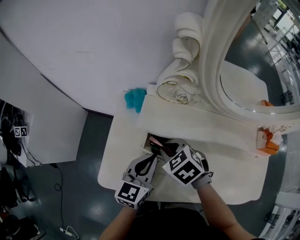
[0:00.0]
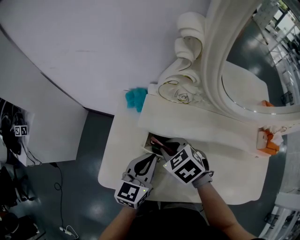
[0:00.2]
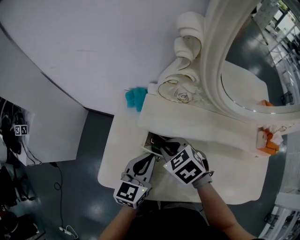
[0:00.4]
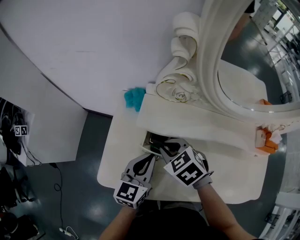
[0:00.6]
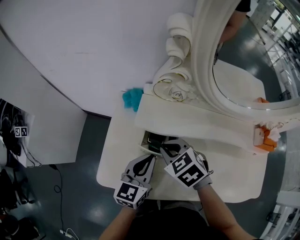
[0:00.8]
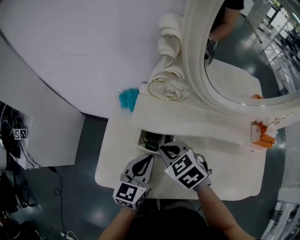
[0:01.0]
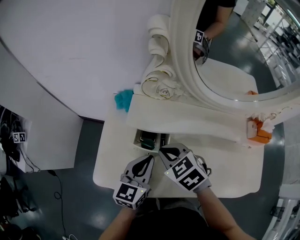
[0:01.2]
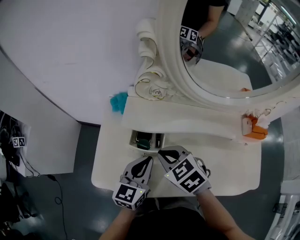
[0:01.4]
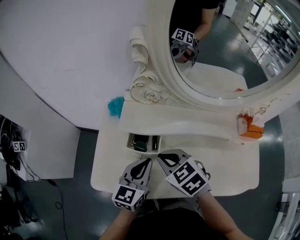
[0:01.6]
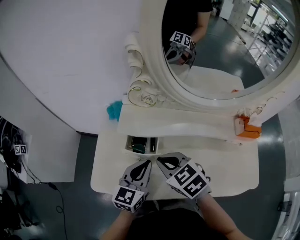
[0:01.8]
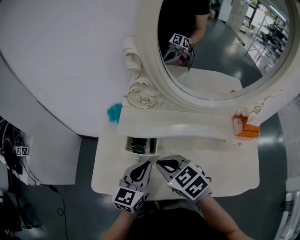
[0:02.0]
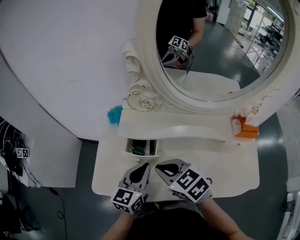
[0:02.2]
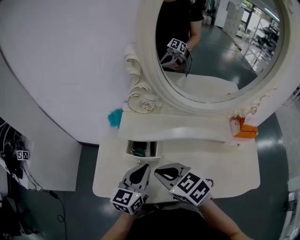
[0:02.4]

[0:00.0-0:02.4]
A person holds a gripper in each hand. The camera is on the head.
0:00.0 to 0:01.2: The right gripper shifts by roughly 5 cm.
0:01.2 to 0:02.4: The right gripper travels backward by some 10 cm.

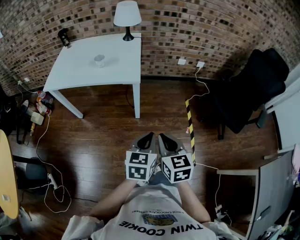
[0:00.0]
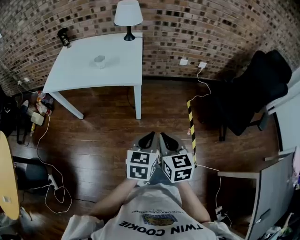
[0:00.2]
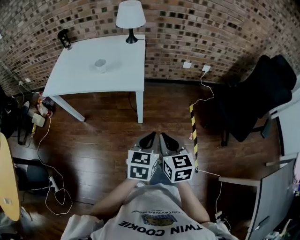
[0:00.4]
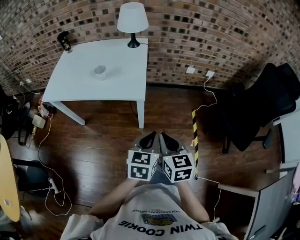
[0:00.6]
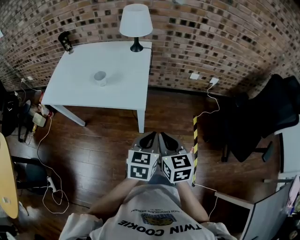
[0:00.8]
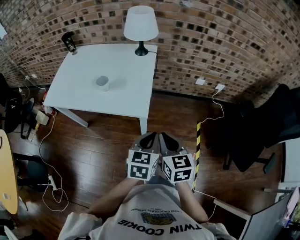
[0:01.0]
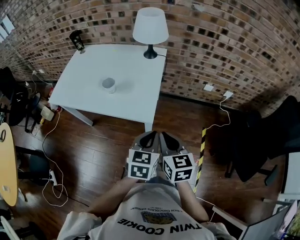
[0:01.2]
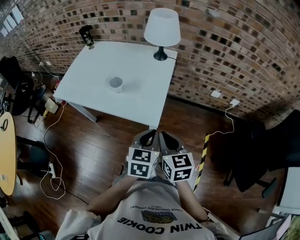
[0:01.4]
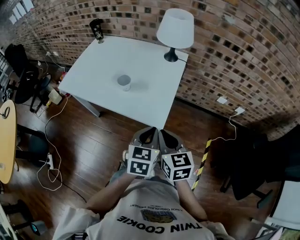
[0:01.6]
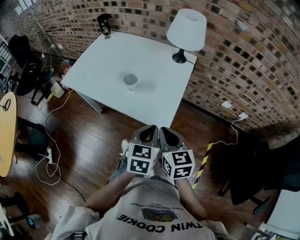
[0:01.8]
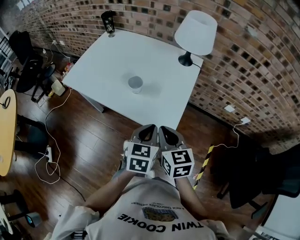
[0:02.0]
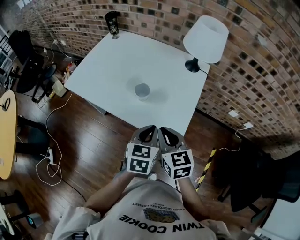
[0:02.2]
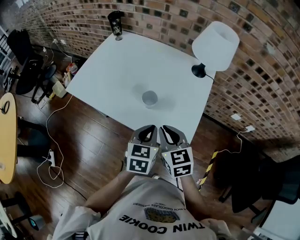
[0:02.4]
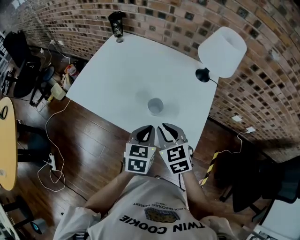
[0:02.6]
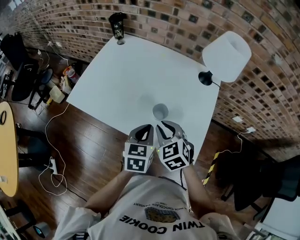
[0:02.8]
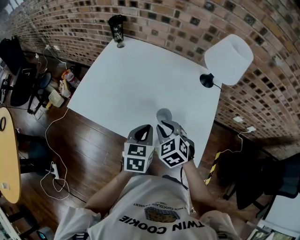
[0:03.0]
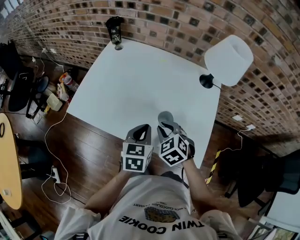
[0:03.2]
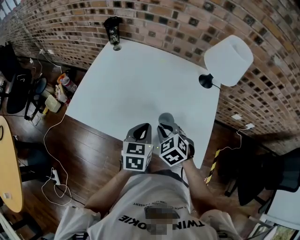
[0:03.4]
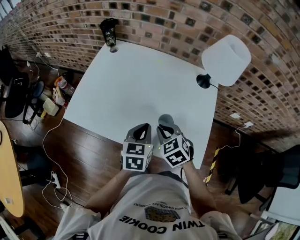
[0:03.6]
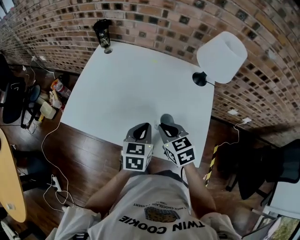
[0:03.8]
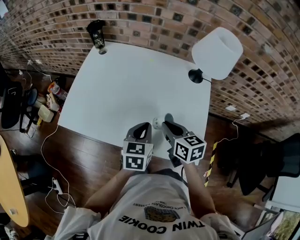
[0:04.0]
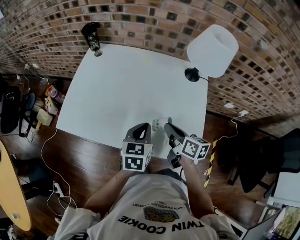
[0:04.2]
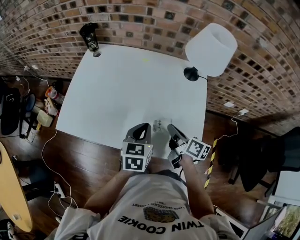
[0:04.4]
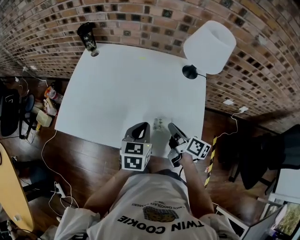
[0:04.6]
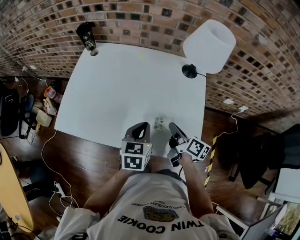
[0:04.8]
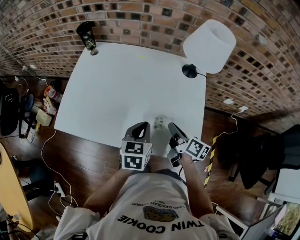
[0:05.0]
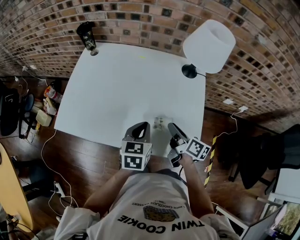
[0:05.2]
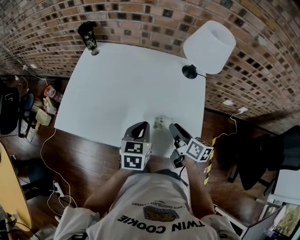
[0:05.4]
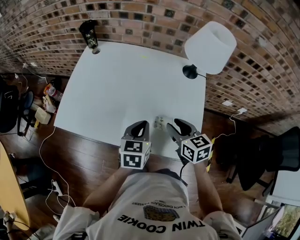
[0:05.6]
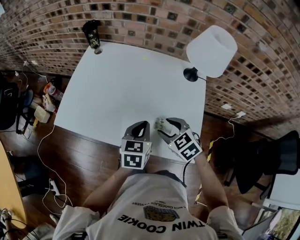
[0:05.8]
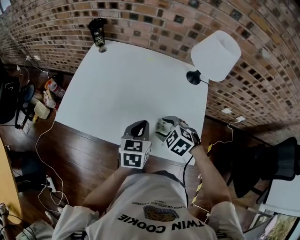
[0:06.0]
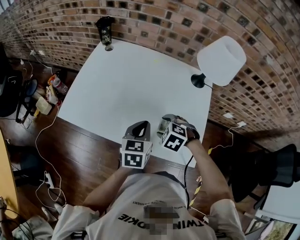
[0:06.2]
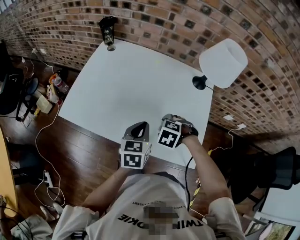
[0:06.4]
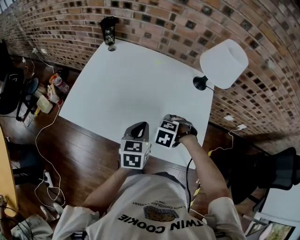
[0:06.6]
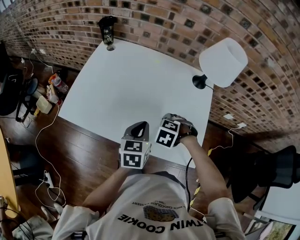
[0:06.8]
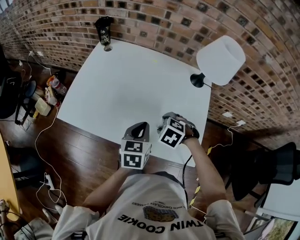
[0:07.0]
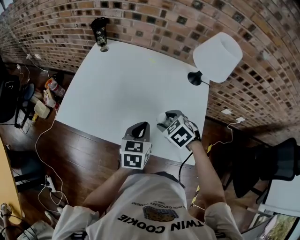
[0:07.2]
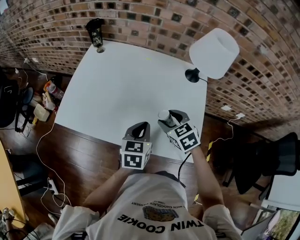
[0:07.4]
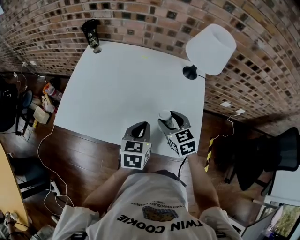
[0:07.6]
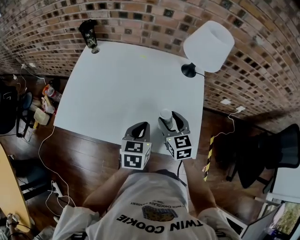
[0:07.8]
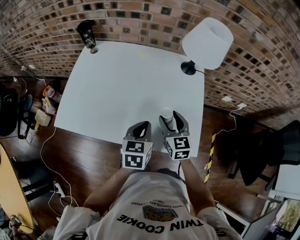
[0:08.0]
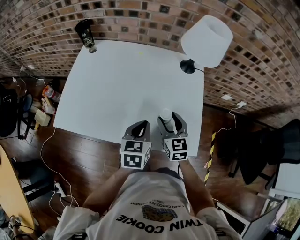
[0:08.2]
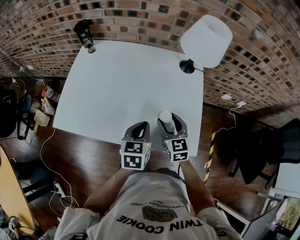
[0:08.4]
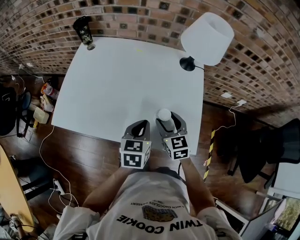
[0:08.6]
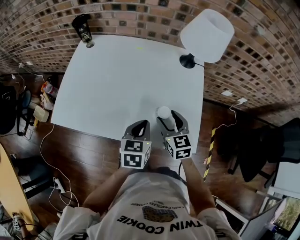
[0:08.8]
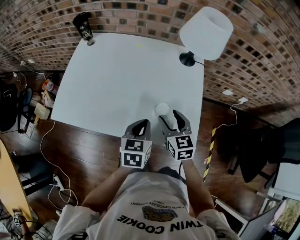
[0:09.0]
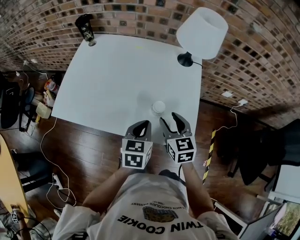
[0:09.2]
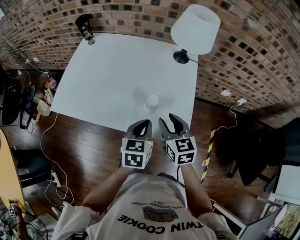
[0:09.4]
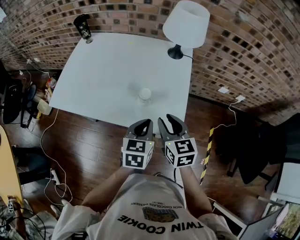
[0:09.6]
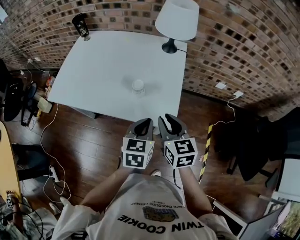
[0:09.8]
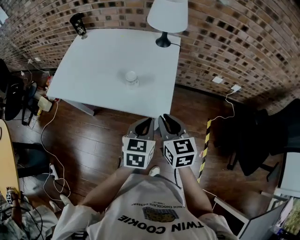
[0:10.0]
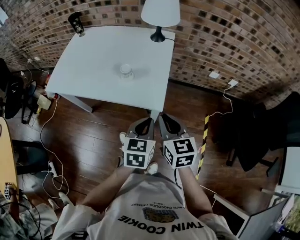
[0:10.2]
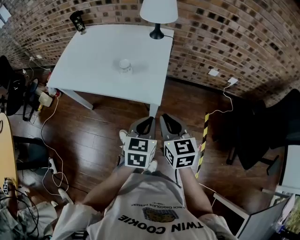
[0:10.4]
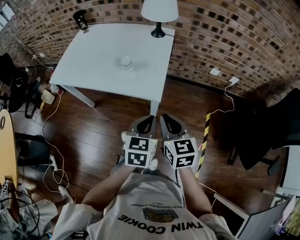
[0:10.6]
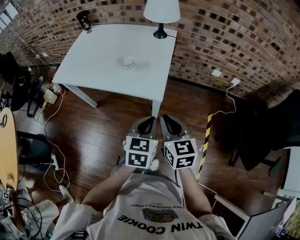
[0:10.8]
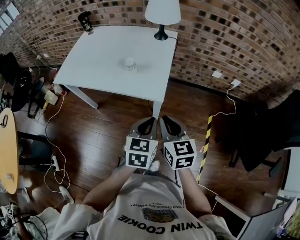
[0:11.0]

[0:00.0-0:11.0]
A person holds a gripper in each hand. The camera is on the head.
0:00.0 to 0:01.6: The two grippers go some 35 cm forward. The right gripper turns by some 20 degrees; the left gripper rotates approximately 20 degrees.
0:01.6 to 0:03.2: The grippers both shift forward and to the left by roughly 35 cm. The right gripper rotates approximately 40 degrees.
0:03.2 to 0:04.8: The right gripper goes approximately 15 cm to the right, and rolls clockwise, seen from behind, by approximately 90 degrees; the left gripper travels to the right by approximately 5 cm.
0:04.8 to 0:06.2: The right gripper shifts some 10 cm to the left, rolls counterclockwise, seen from behind, by roughly 100 degrees, and opens up.
0:06.2 to 0:07.8: The right gripper moves some 10 cm, and tilts its fingers some 40 degrees upward.
0:07.8 to 0:09.4: The right gripper is displaced backward and to the right by approximately 10 cm. Meanwhile the left gripper shifts approximately 10 cm to the right and backward.
0:09.4 to 0:11.0: Both grippers travel together backward and to the right, some 30 cm. The right gripper closes its fingers.

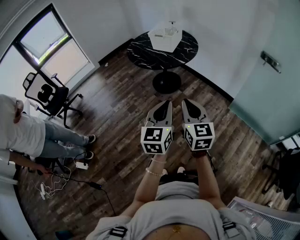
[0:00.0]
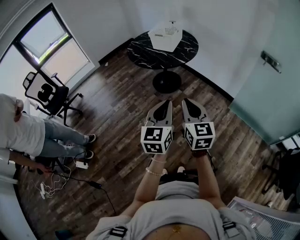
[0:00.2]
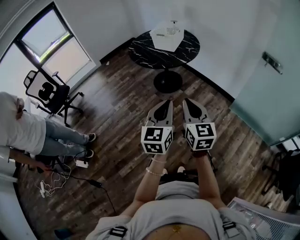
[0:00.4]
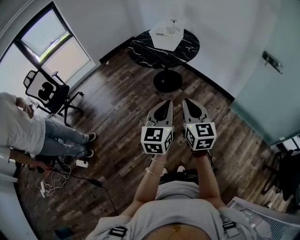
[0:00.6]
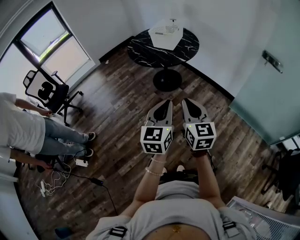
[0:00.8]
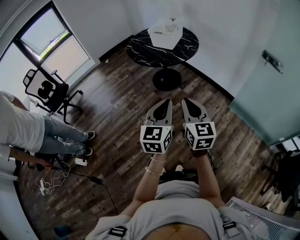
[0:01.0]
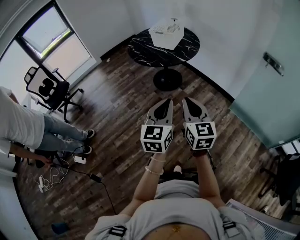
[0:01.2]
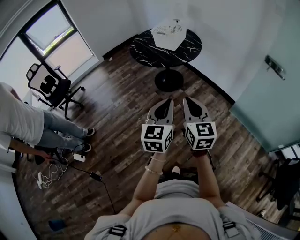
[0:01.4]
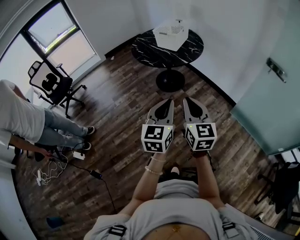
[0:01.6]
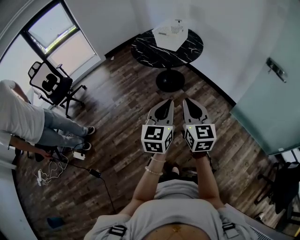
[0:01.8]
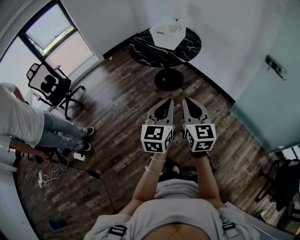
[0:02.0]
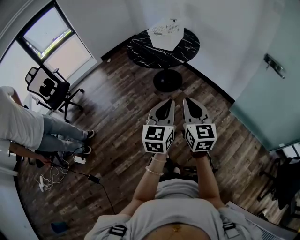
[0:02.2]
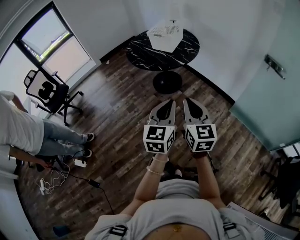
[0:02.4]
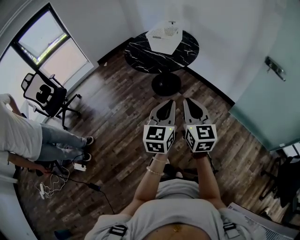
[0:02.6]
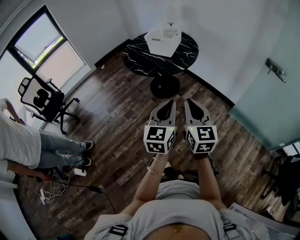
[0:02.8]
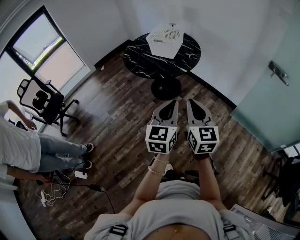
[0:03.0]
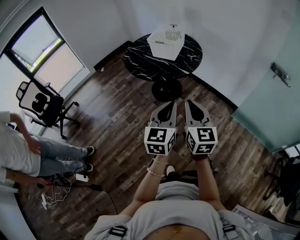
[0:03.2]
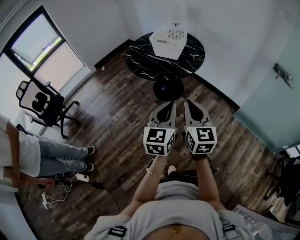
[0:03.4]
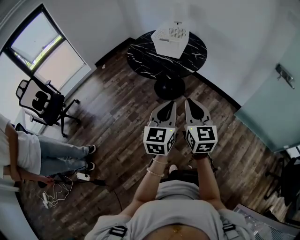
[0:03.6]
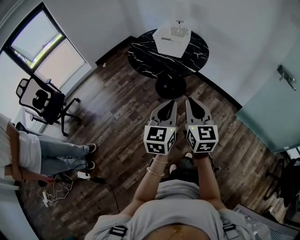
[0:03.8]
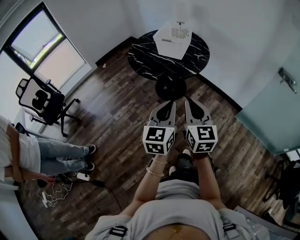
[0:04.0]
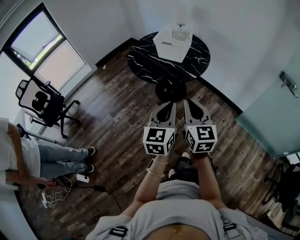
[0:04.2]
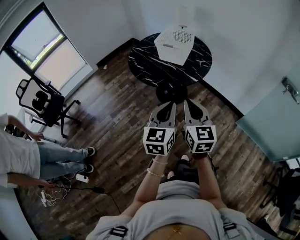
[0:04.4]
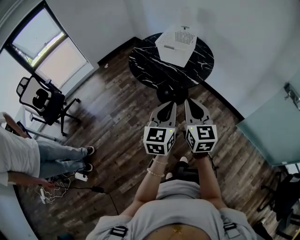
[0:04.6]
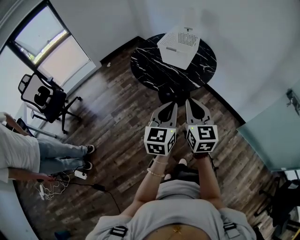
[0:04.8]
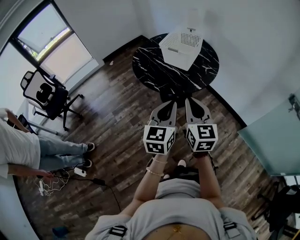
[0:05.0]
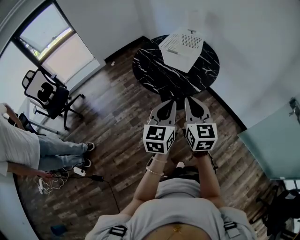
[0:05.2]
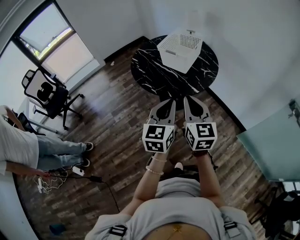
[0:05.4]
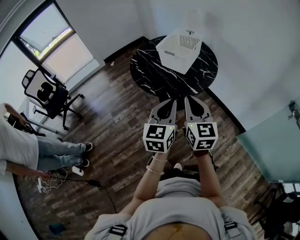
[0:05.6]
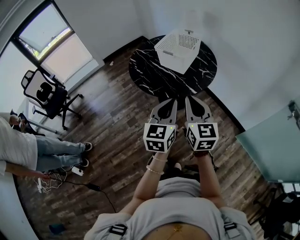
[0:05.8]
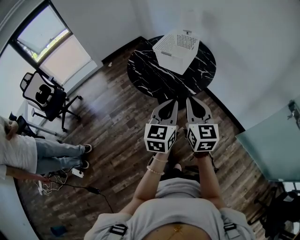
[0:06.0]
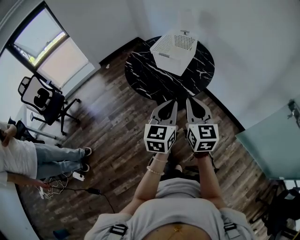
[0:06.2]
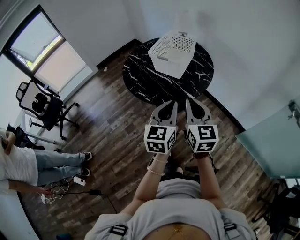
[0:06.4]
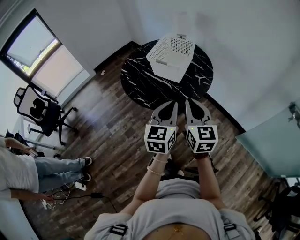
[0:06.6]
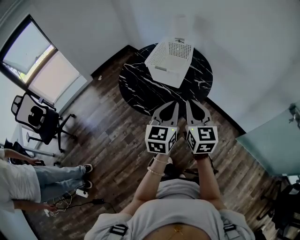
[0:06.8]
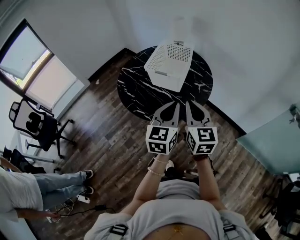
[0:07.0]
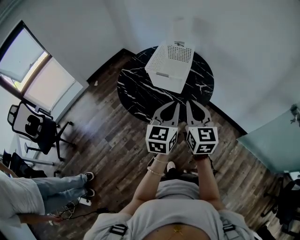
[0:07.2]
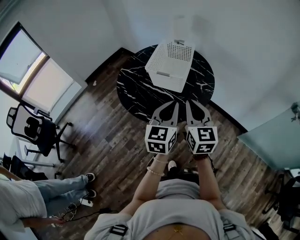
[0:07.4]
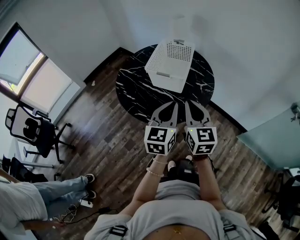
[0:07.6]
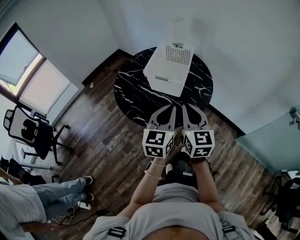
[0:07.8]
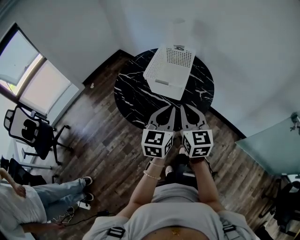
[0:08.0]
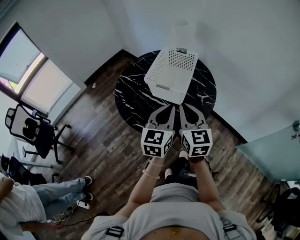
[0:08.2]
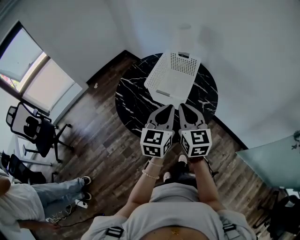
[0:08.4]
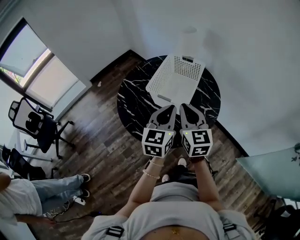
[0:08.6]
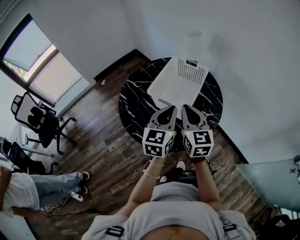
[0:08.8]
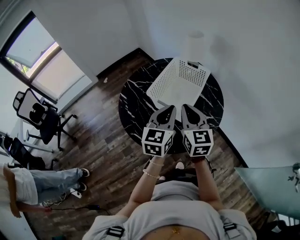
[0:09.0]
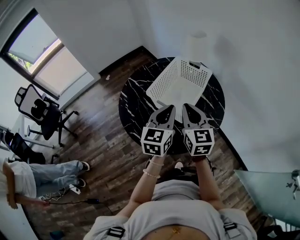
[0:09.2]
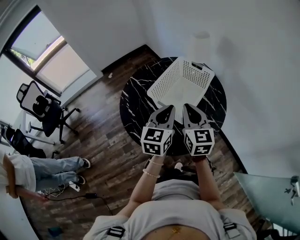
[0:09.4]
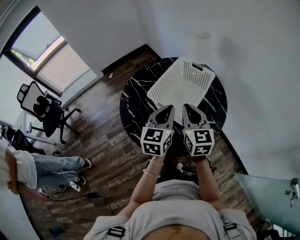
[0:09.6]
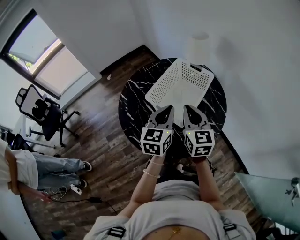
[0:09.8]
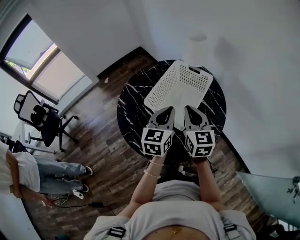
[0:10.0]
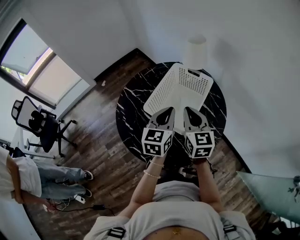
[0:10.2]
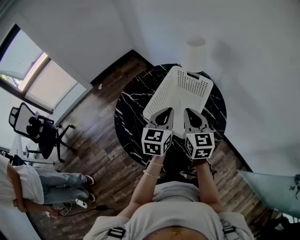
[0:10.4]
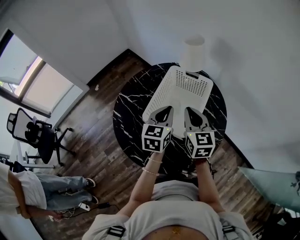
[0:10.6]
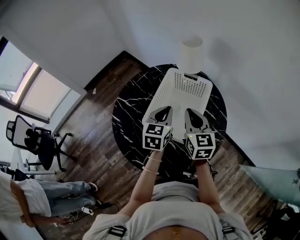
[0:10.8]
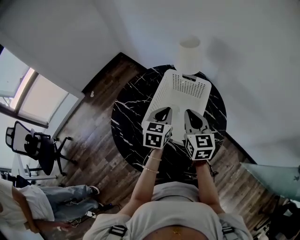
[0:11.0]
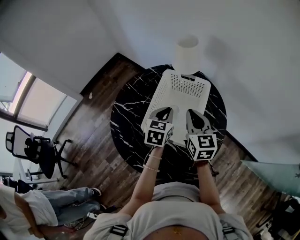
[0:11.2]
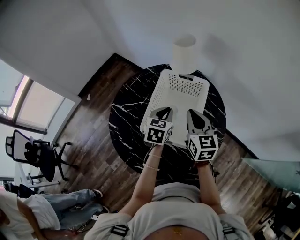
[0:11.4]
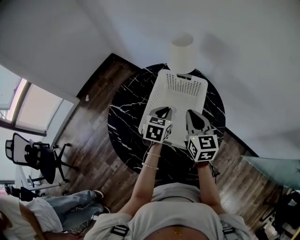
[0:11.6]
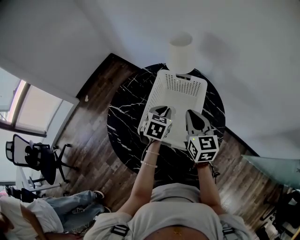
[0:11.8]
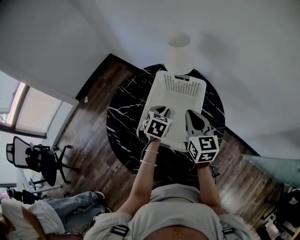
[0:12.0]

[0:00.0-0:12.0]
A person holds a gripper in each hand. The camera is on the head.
0:00.0 to 0:01.6: The left gripper ends up some 5 cm from where it was.
0:01.6 to 0:03.0: Both grippers travel together forward, approximately 10 cm.
0:03.0 to 0:04.4: Both grippers move forward and to the left, some 15 cm.
0:04.4 to 0:06.0: Both grippers move forward and to the right, some 15 cm.
0:06.0 to 0:07.6: The right gripper heads forward and to the left, covering approximately 20 cm, while the left gripper is displaced forward by approximately 20 cm.
0:07.6 to 0:09.0: Both grippers move forward, some 20 cm.
0:09.0 to 0:10.4: The two grippers go some 10 cm forward.
0:10.4 to 0:12.0: The left gripper travels downward and forward by about 15 cm, and points its fingers approximately 30 degrees further downward. The right gripper moves forward, some 5 cm.
